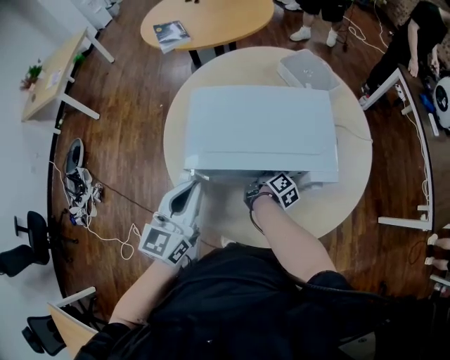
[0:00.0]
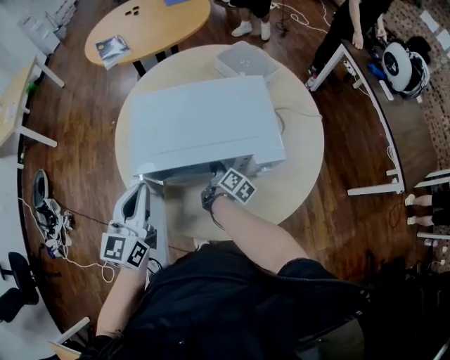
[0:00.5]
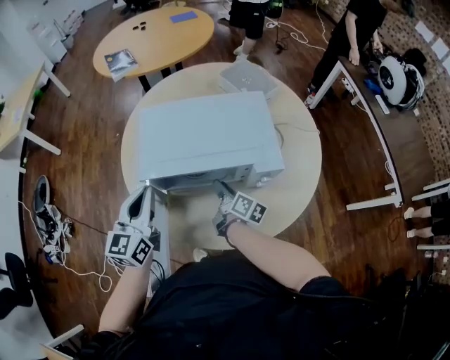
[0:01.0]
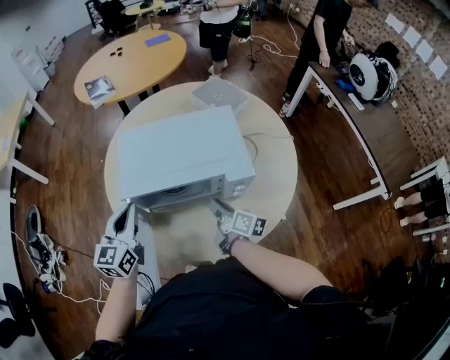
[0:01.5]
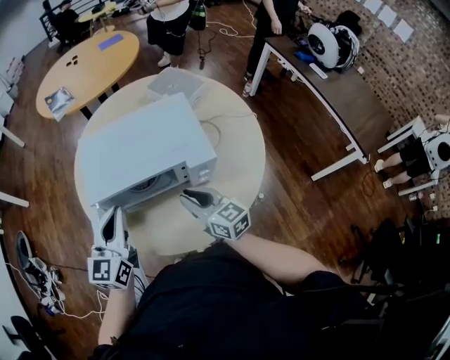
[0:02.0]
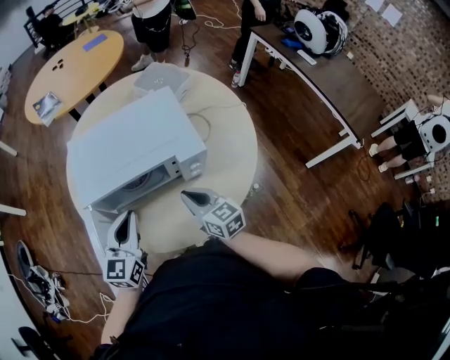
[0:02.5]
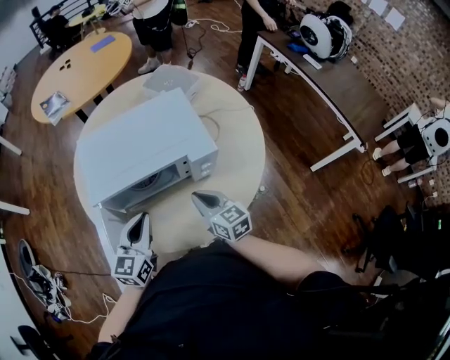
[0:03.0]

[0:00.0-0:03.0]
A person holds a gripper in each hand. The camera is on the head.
0:00.0 to 0:01.5: The right gripper goes roughly 15 cm backward and upward, and changes its angle by approximately 30 degrees.
0:01.5 to 0:03.0: The left gripper moves to the right and downward, roughly 10 cm. Meanwhile the right gripper twists some 40 degrees counterclockwise, seen from behind, and closes its fingers.

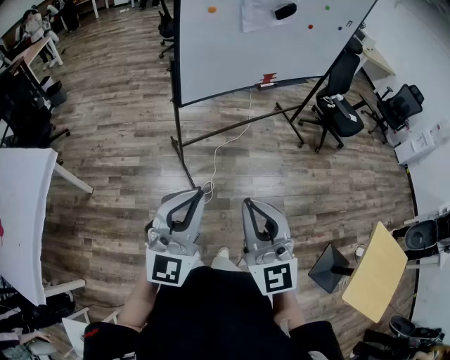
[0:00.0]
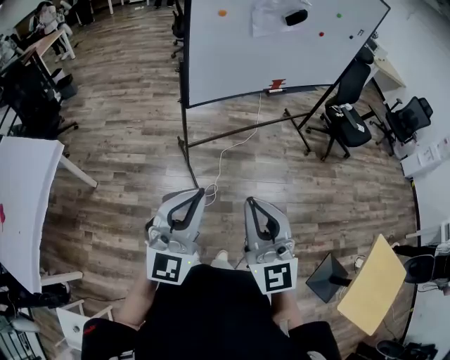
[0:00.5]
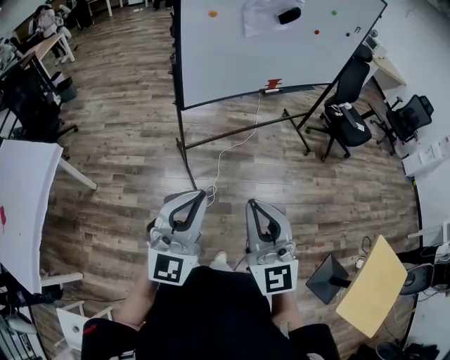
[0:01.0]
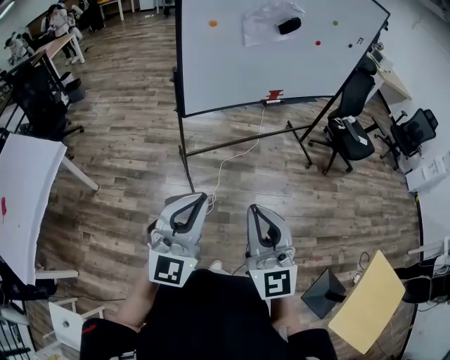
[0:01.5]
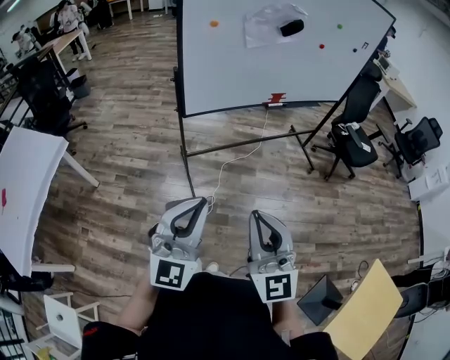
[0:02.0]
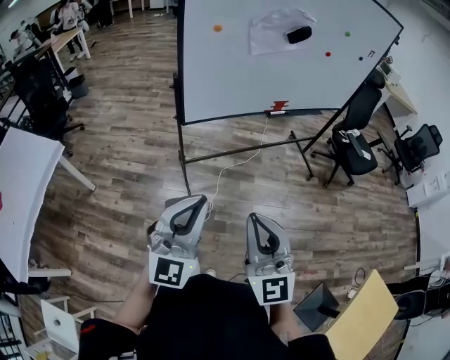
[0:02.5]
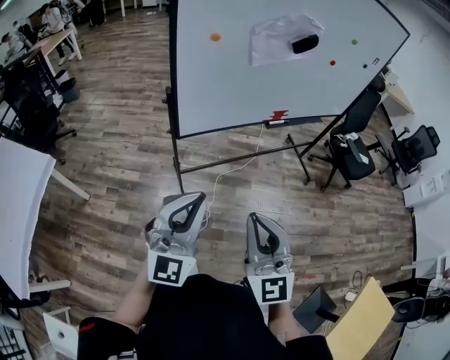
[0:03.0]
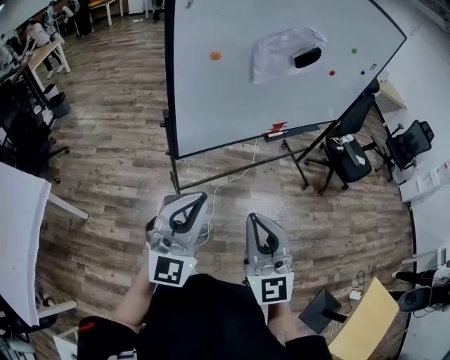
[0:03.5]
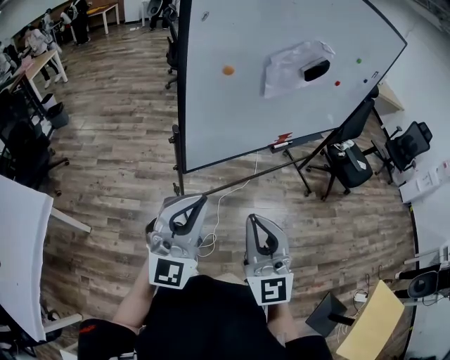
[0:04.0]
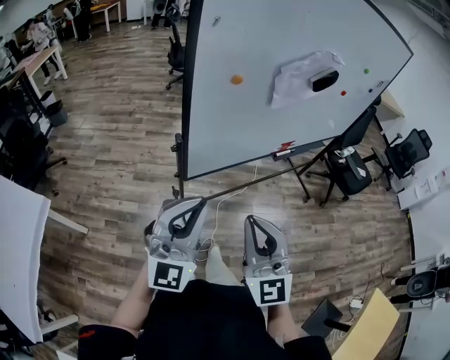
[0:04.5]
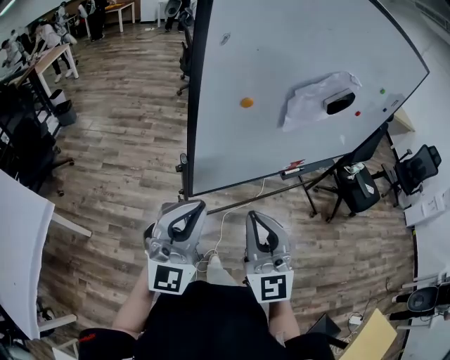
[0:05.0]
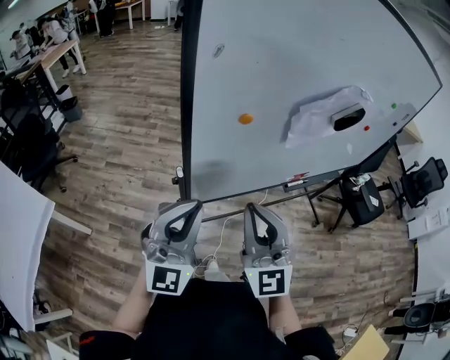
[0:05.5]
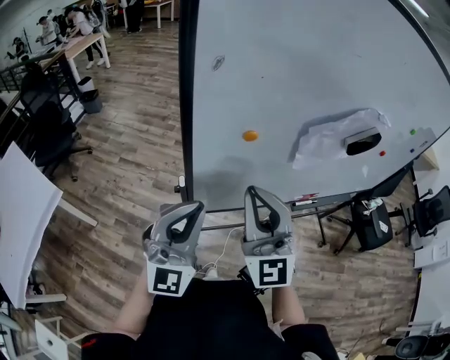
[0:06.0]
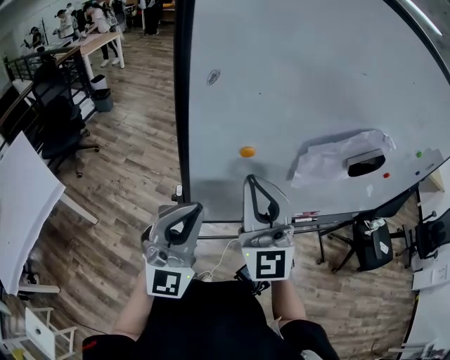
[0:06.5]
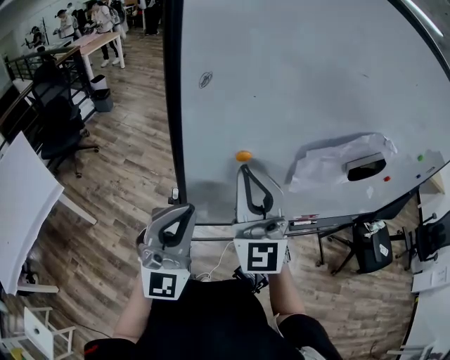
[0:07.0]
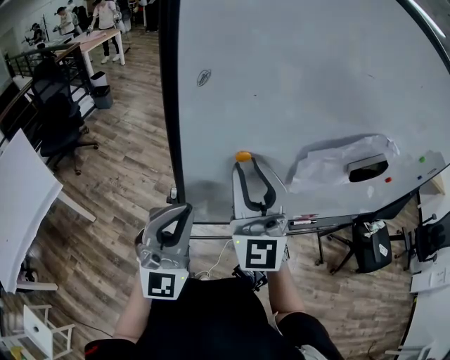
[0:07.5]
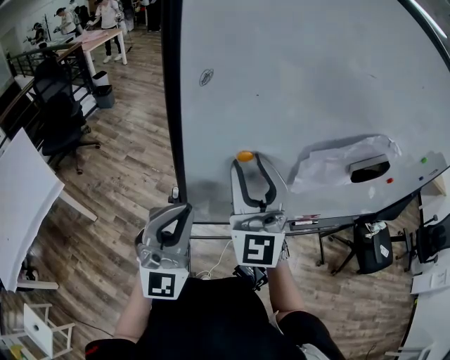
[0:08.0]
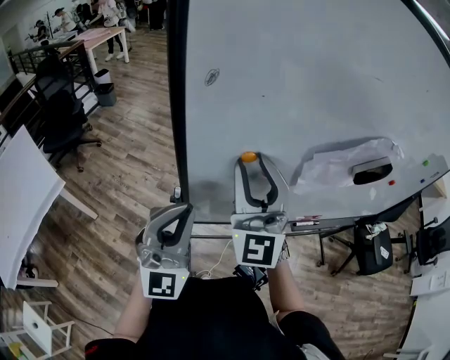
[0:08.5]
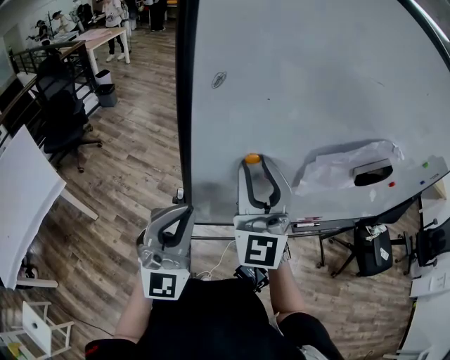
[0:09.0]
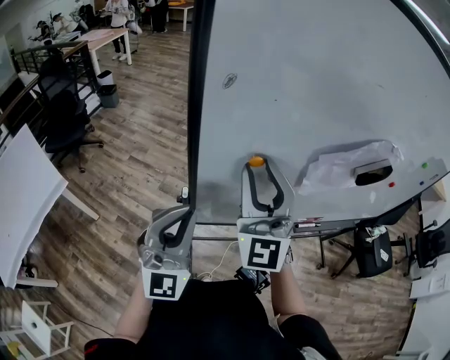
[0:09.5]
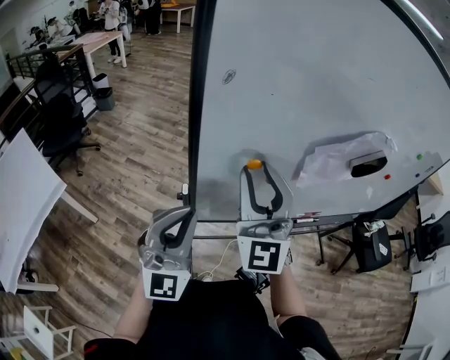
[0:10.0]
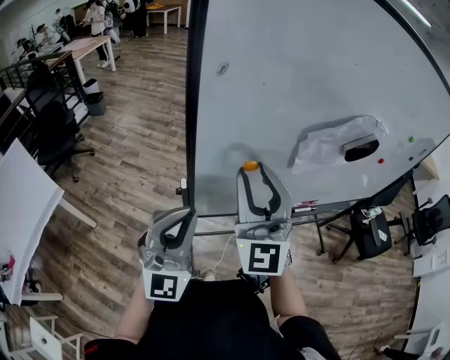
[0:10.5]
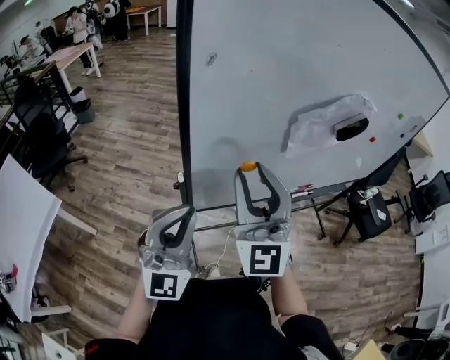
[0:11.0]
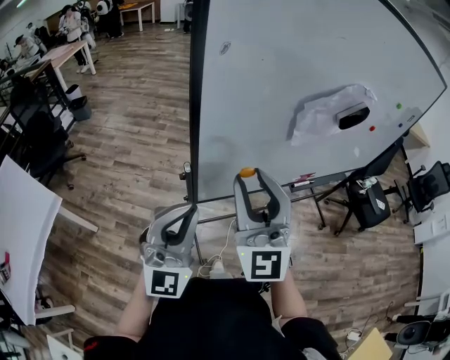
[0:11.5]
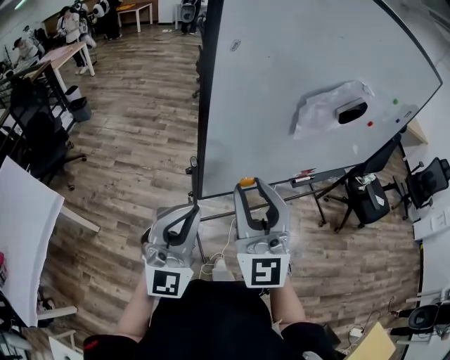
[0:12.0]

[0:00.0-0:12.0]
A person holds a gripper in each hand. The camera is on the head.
0:00.0 to 0:02.0: The grippers both shift to the right by approximately 10 cm.
0:02.0 to 0:04.0: The grippers both shift forward and to the left by some 30 cm.
0:04.0 to 0:06.0: The grippers both shift forward by approximately 20 cm.
0:06.0 to 0:08.0: The right gripper moves forward, approximately 10 cm, and opens its fingers.
0:08.0 to 0:10.0: The grippers move only a little.
0:10.0 to 0:12.0: The left gripper shifts about 10 cm backward; the right gripper shifts some 15 cm backward.

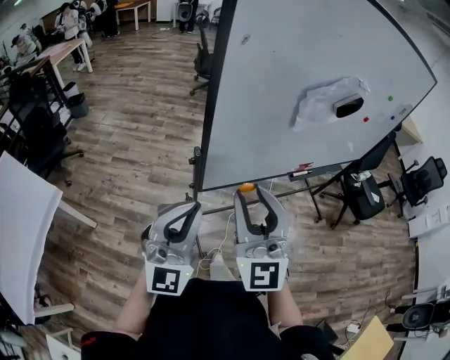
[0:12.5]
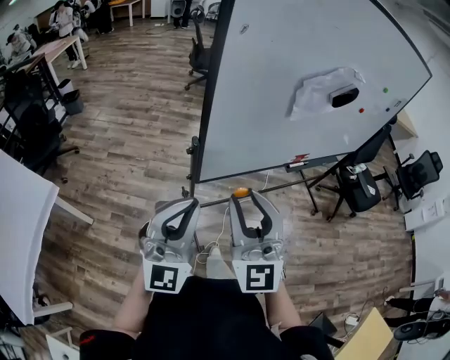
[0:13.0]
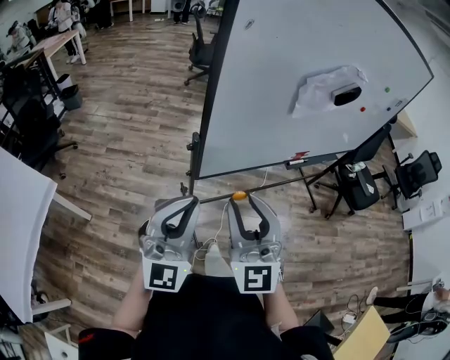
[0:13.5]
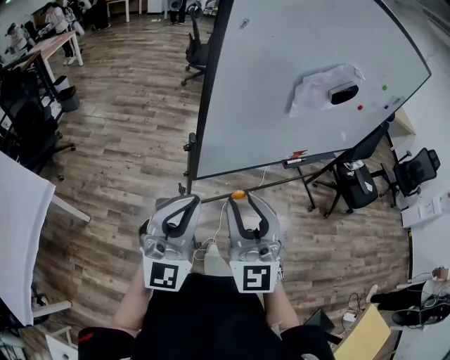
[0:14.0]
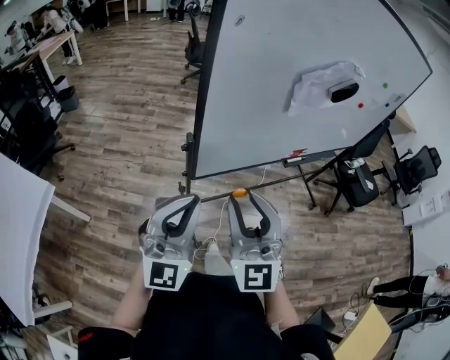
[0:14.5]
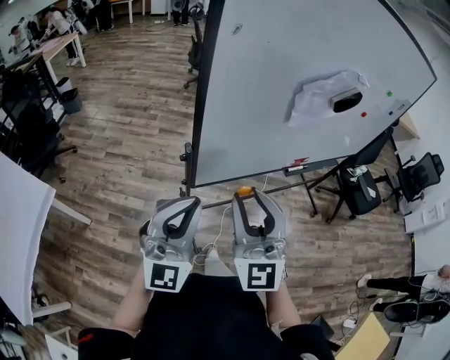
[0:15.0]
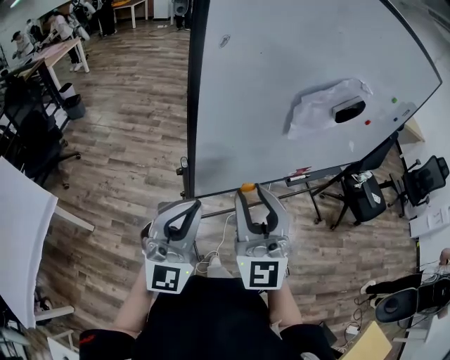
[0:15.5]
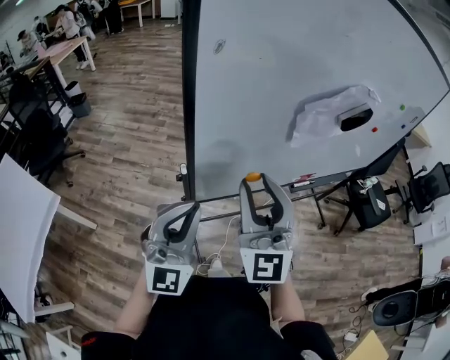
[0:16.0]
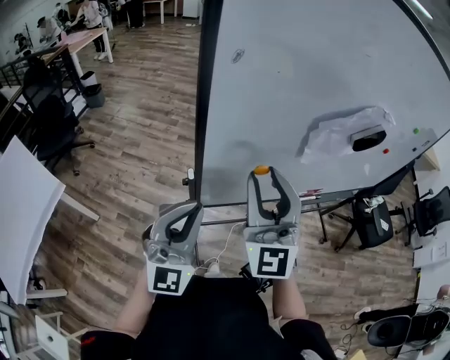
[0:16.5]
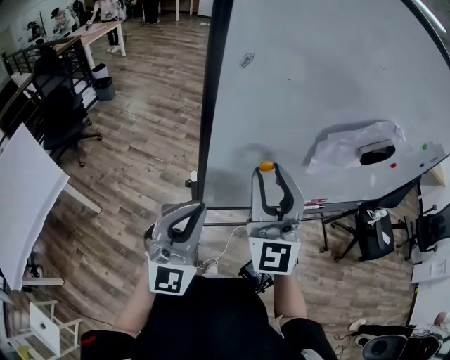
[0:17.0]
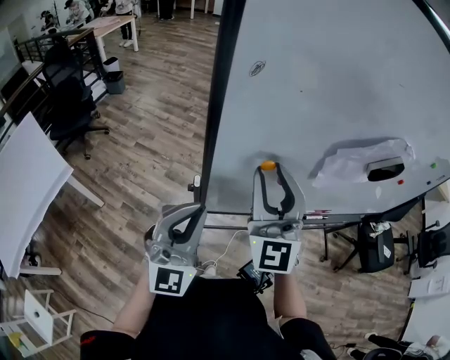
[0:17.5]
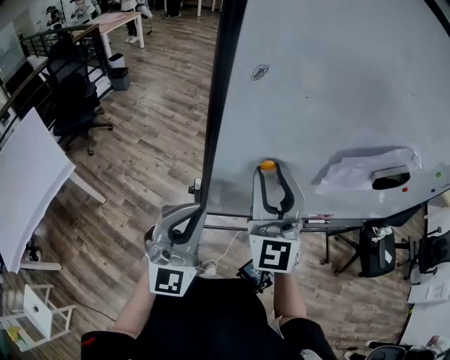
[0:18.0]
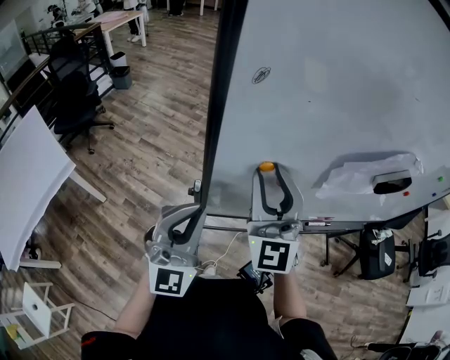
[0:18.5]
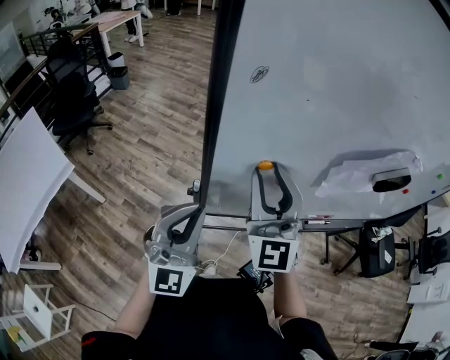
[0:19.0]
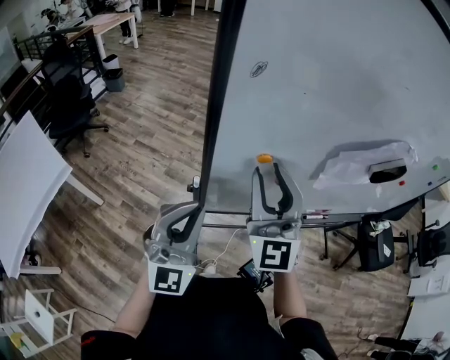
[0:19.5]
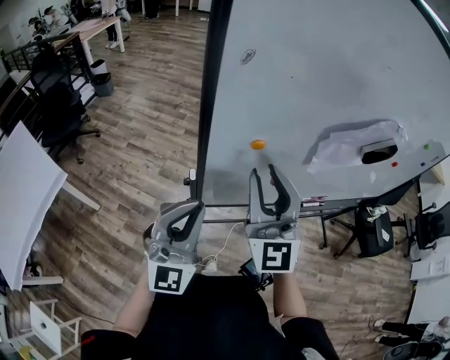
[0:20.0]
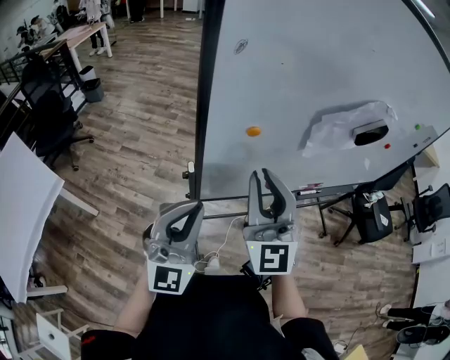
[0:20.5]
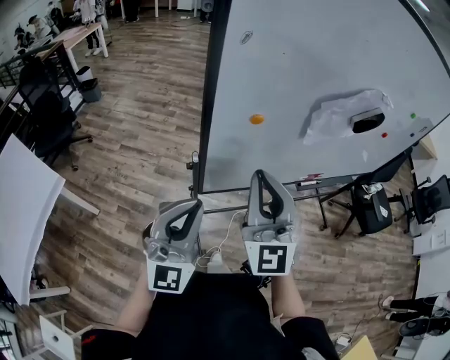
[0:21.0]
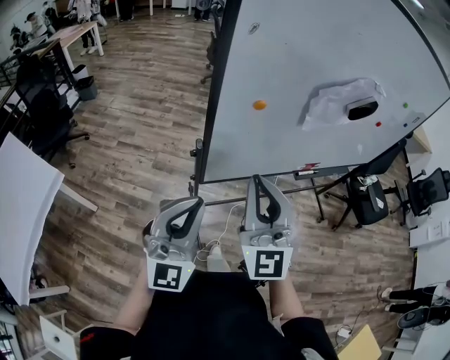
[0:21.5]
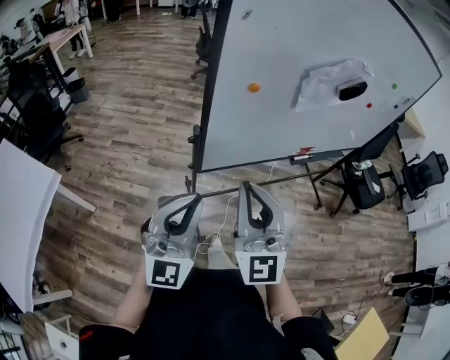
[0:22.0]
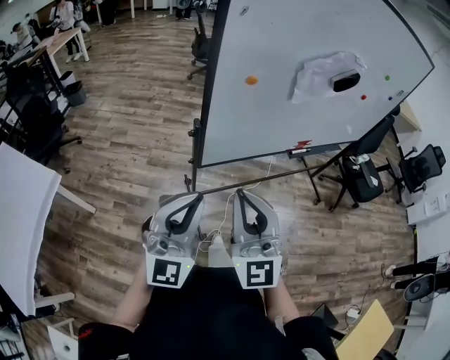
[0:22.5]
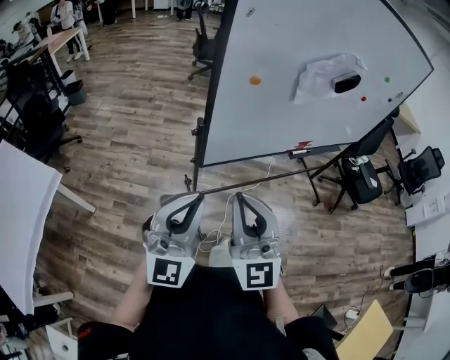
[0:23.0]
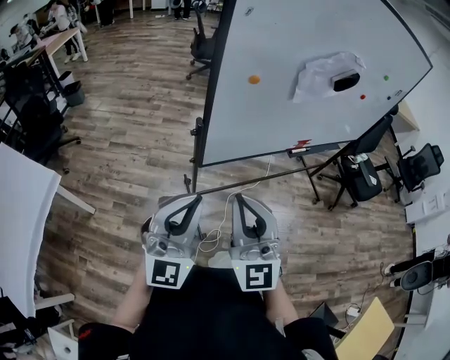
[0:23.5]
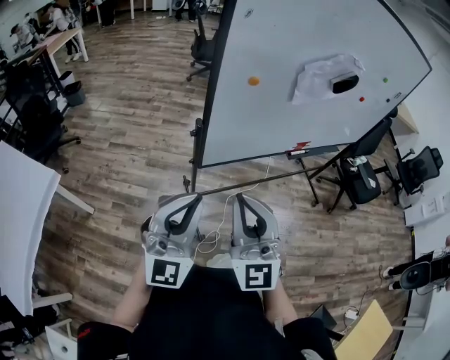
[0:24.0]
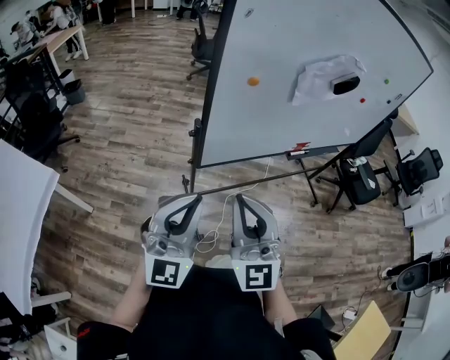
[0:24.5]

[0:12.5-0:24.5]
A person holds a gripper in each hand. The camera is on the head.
0:12.5 to 0:14.5: There are only small adjustments of the grippers.
0:14.5 to 0:16.5: The left gripper heads forward, covering approximately 10 cm. Meanwhile the right gripper is displaced forward by approximately 15 cm.
0:16.5 to 0:18.5: The right gripper heads forward, covering about 10 cm.
0:18.5 to 0:20.5: The left gripper is displaced backward by approximately 5 cm. Meanwhile the right gripper is displaced backward by about 10 cm.
0:20.5 to 0:22.5: Both grippers travel together backward, about 15 cm.
0:22.5 to 0:24.5: The grippers stay close to where they were, moving slightly.
